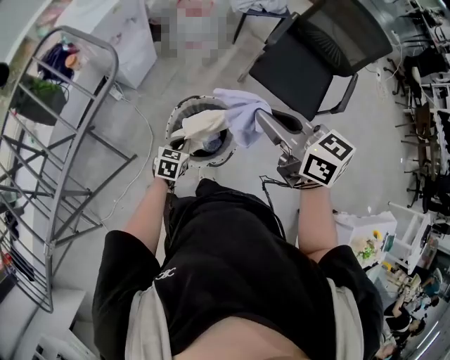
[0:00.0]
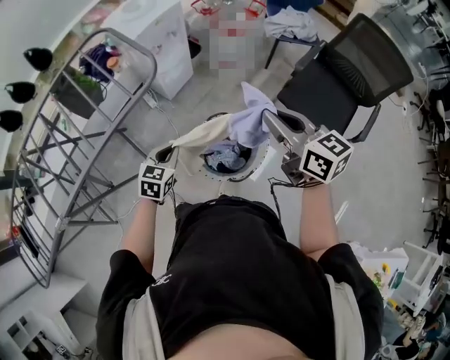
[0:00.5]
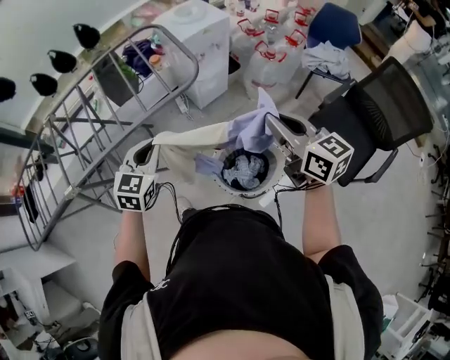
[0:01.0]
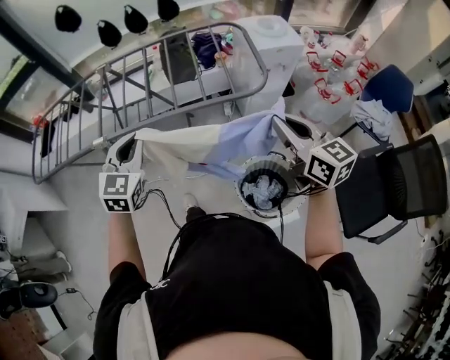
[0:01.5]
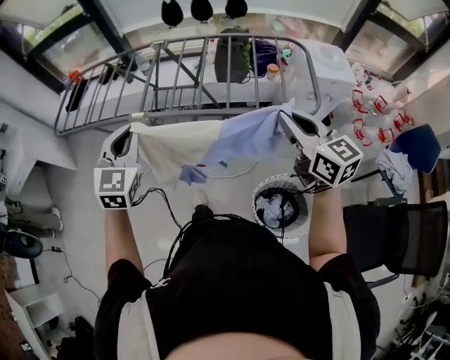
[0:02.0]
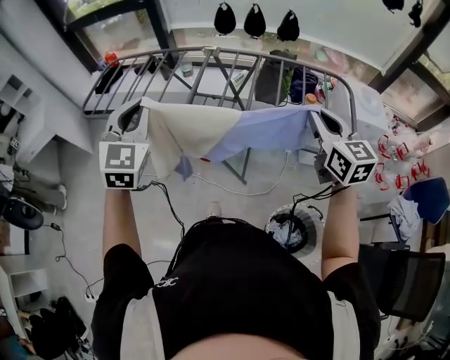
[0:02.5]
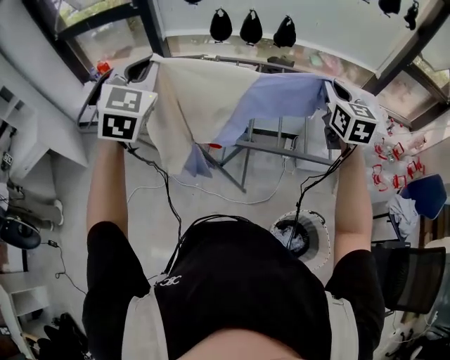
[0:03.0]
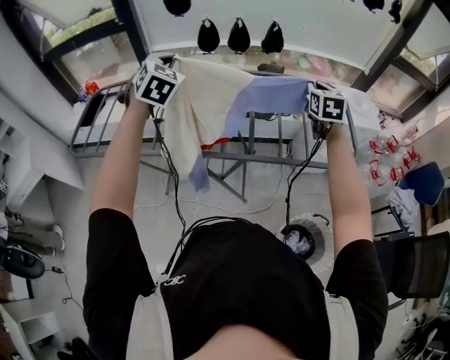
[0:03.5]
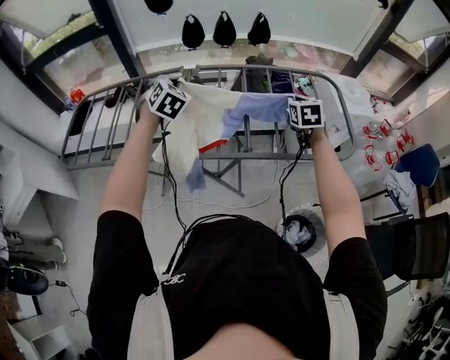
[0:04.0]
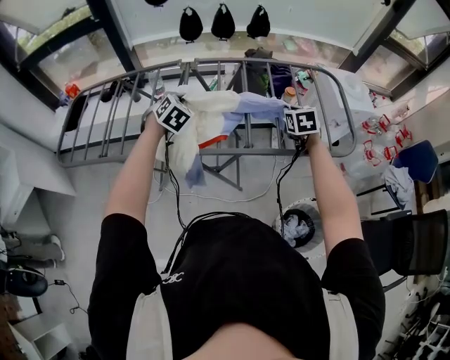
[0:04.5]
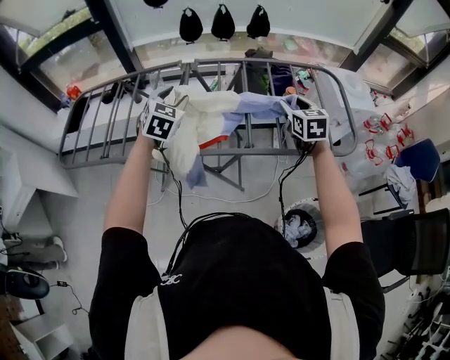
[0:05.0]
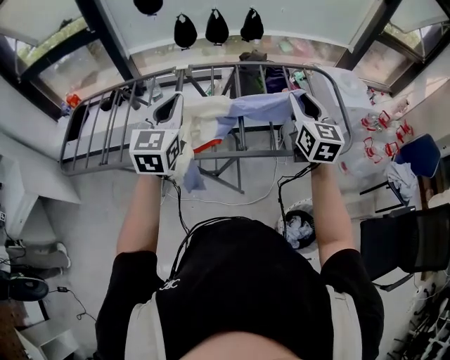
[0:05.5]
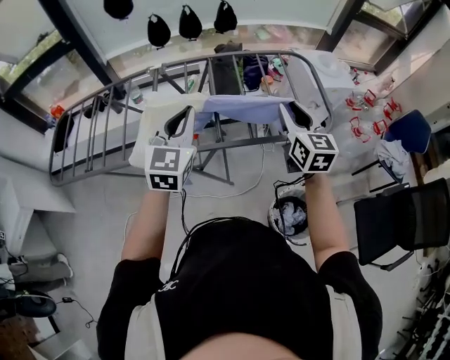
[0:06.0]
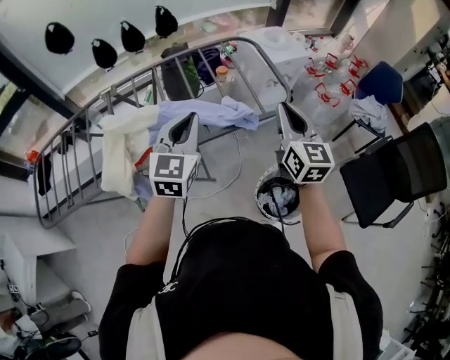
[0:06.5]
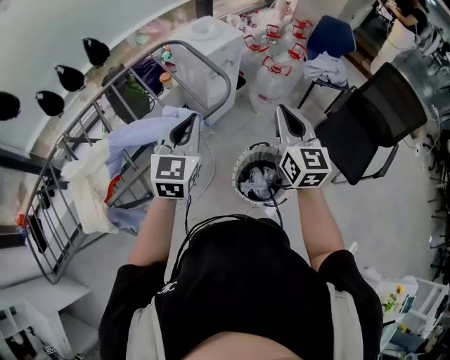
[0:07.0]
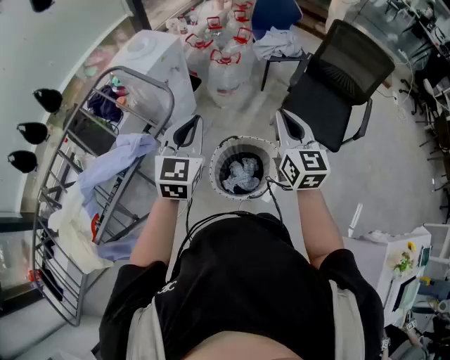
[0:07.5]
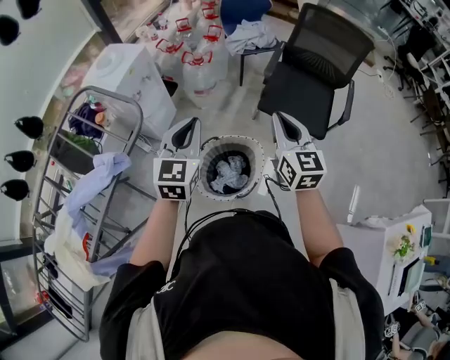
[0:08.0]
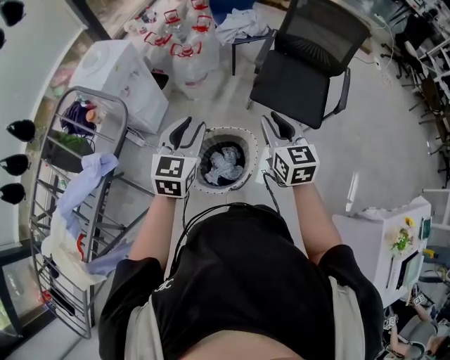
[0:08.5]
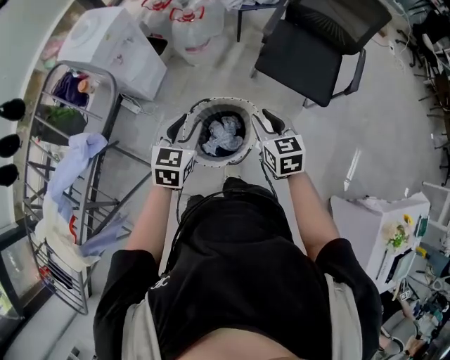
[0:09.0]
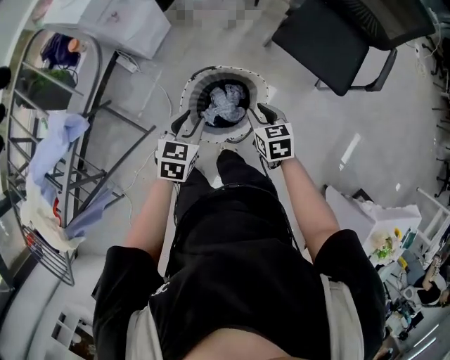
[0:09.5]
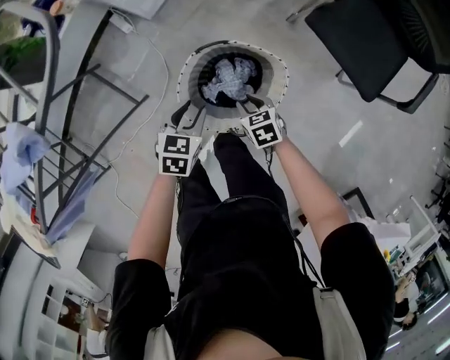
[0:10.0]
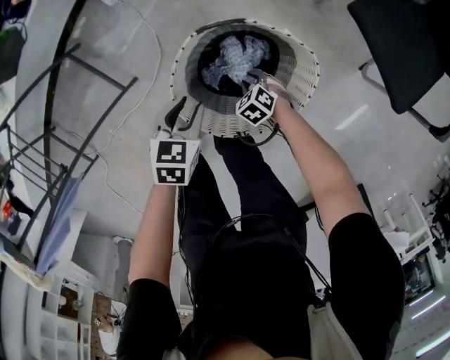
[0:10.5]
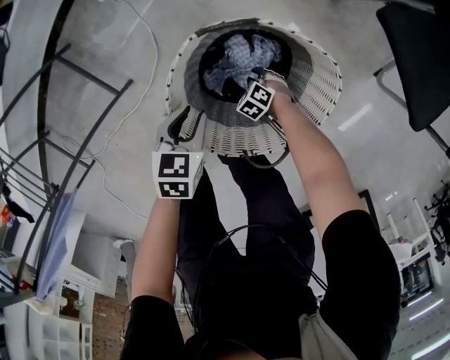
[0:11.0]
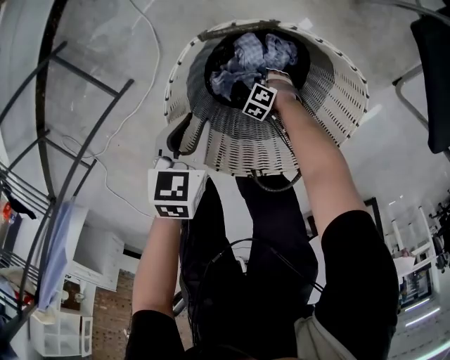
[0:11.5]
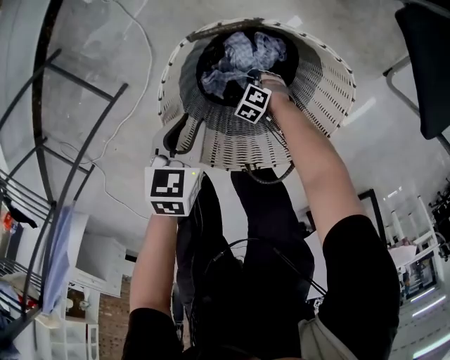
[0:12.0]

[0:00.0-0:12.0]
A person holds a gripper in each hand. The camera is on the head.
0:00.0 to 0:02.0: The left gripper shifts by roughly 70 cm, and swivels some 80 degrees, while the right gripper ends up roughly 35 cm from where it was, and swivels roughly 50 degrees.
0:02.0 to 0:04.0: The two grippers go roughly 30 cm forward. The left gripper turns by roughly 20 degrees, while the right gripper changes its angle by some 40 degrees.
0:04.0 to 0:06.0: The right gripper heads backward and upward, covering about 15 cm, rotates some 30 degrees, and opens its fingers. Meanwhile the left gripper heads backward and to the right, covering roughly 25 cm, moves approximately 10 cm downward and comes back, turns by roughly 40 degrees, and opens, then closes once more.
0:06.0 to 0:08.0: Both grippers are carried approximately 60 cm. The right gripper turns by some 50 degrees, and closes up. The left gripper rotates about 60 degrees.
0:08.0 to 0:10.0: The grippers both shift downward by approximately 50 cm. The right gripper tilts its fingers approximately 50 degrees downward, and opens its fingers; the left gripper tilts its fingers roughly 40 degrees downward, and opens its fingers.
0:10.0 to 0:12.0: The left gripper is displaced downward by approximately 25 cm. The right gripper travels downward by approximately 40 cm, and rotates around the line of its fingers by approximately 40 degrees, counterclockwise from behind.

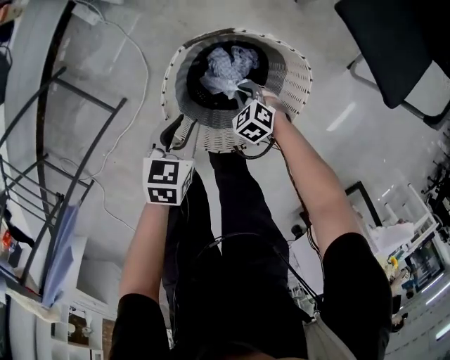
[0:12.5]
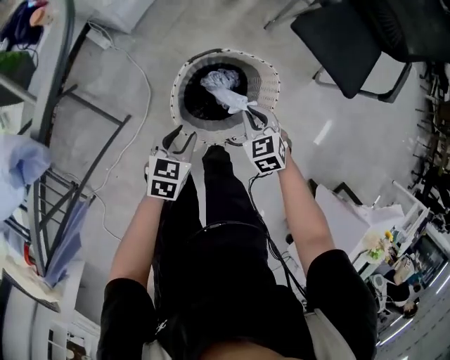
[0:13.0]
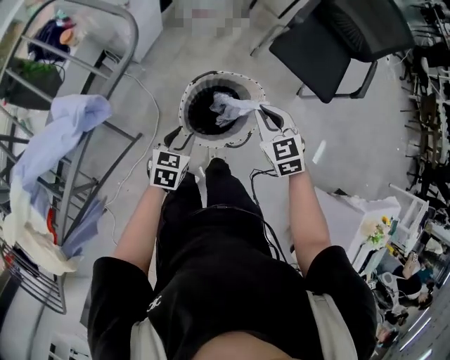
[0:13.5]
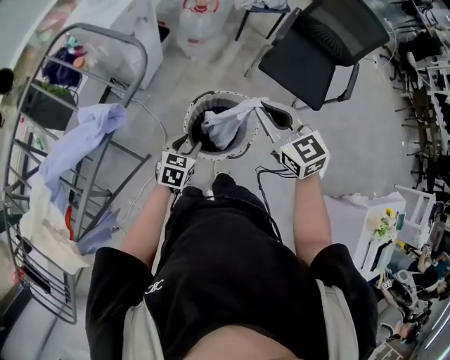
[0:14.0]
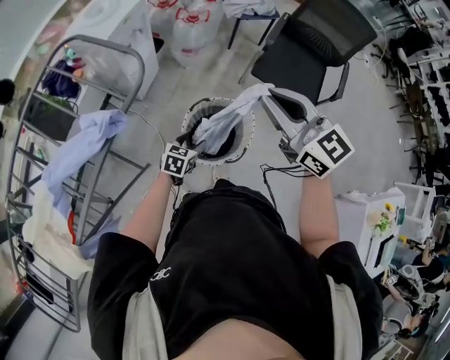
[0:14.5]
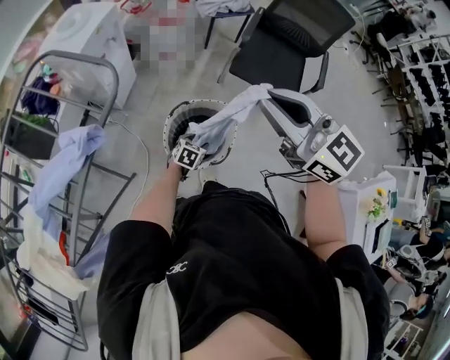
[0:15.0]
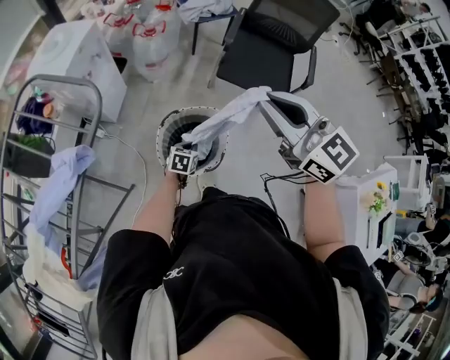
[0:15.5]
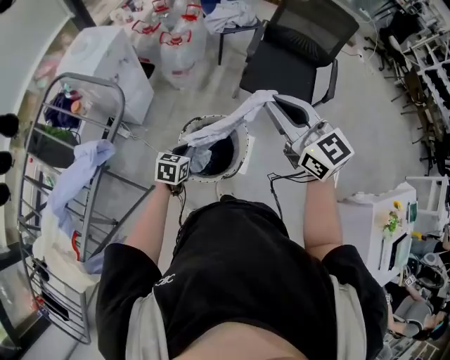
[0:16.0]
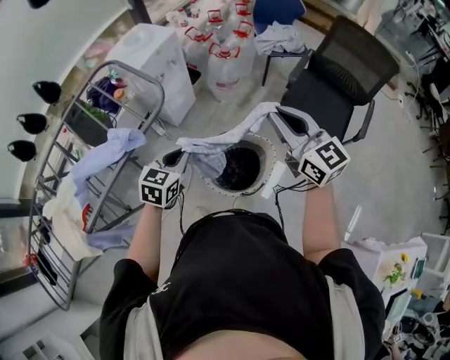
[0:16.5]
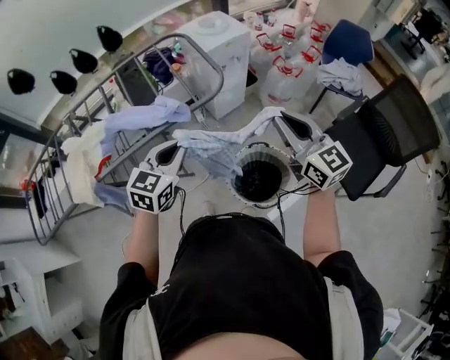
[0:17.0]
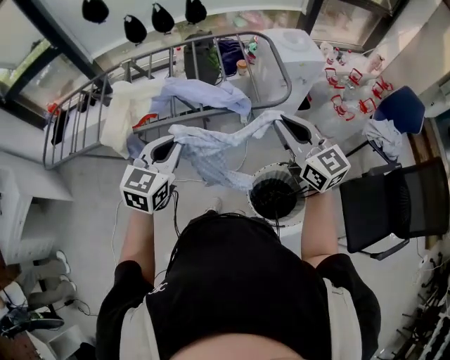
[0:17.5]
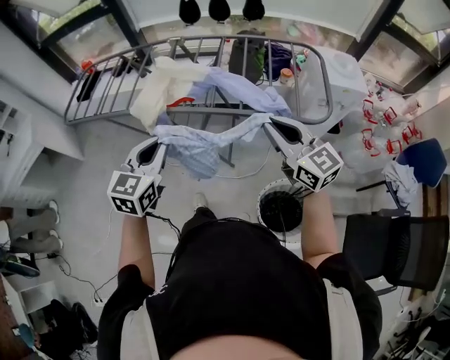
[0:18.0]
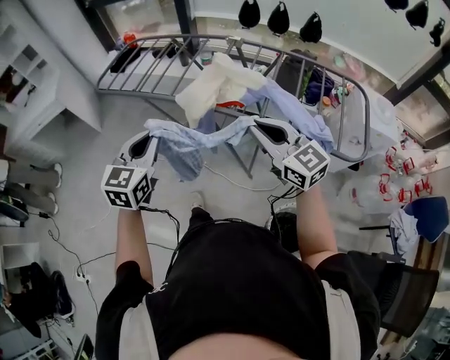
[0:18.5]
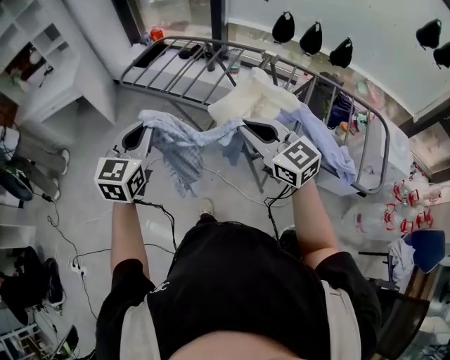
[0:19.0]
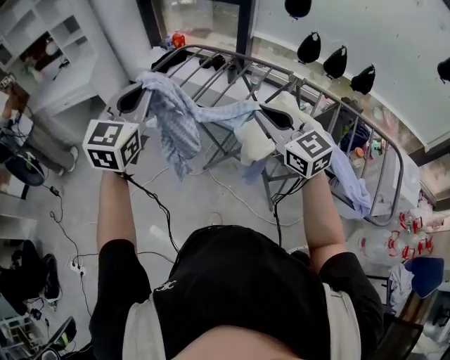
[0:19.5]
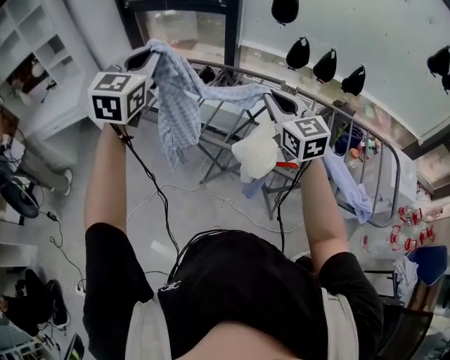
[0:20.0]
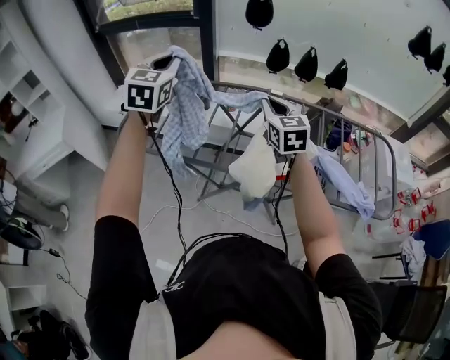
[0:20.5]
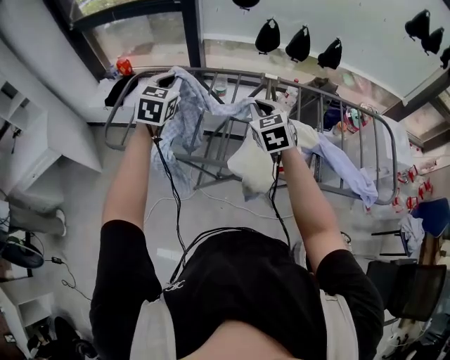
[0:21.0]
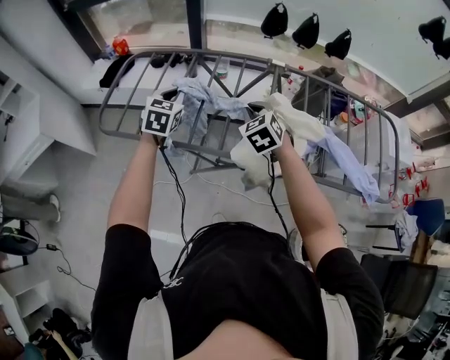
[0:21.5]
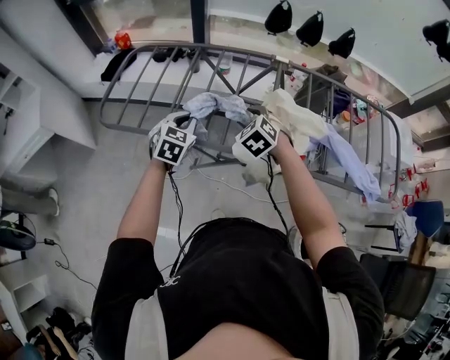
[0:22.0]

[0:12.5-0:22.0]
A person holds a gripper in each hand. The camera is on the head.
0:12.5 to 0:14.5: The right gripper moves upward, about 80 cm, and points its fingers approximately 60 degrees further upward. Meanwhile the left gripper shifts about 25 cm upward, rotates about 30 degrees, and opens.
0:14.5 to 0:16.5: The right gripper shifts about 5 cm to the right; the left gripper heads upward, covering about 20 cm, turns by approximately 20 degrees, and closes.
0:16.5 to 0:18.0: The left gripper ends up some 40 cm from where it was, and changes its angle by roughly 70 degrees; the right gripper shifts by about 40 cm, and changes its angle by about 60 degrees.
0:18.0 to 0:20.0: The two grippers travel together, some 50 cm. The left gripper changes its angle by roughly 30 degrees.
0:20.0 to 0:22.0: The two grippers go roughly 30 cm downward. The left gripper angles its fingers downward, by about 30 degrees, while the right gripper tips its fingers downward by about 40 degrees, and opens.

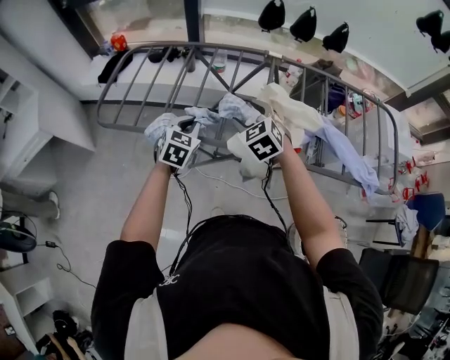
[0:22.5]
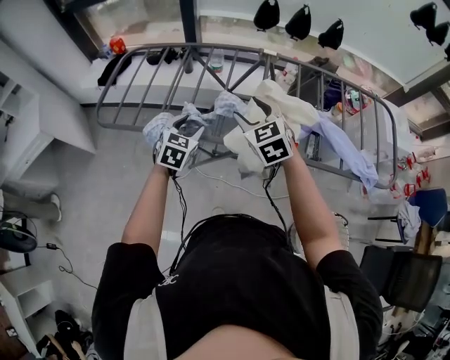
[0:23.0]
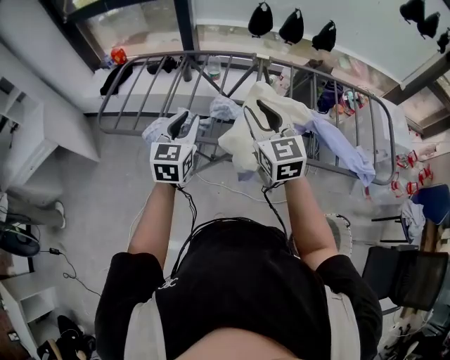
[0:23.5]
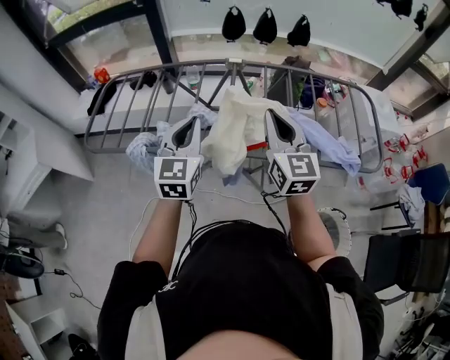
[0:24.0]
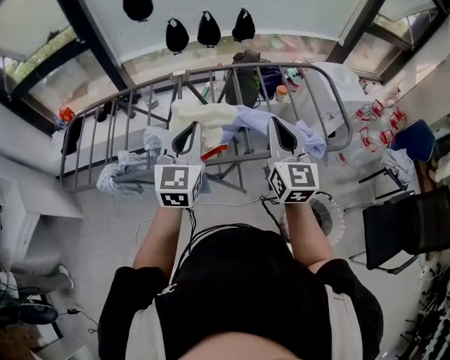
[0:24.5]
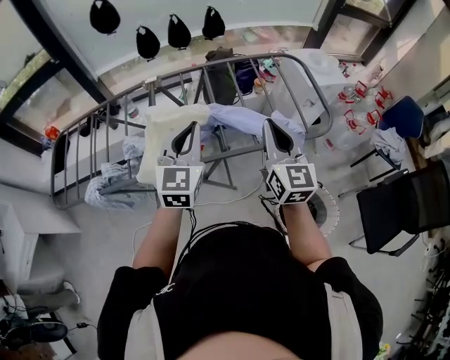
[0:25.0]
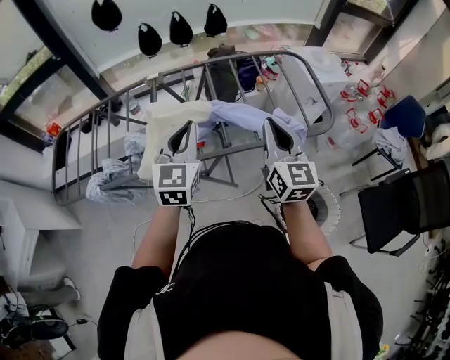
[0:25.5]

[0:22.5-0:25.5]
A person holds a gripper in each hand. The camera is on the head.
0:22.5 to 0:24.0: The right gripper travels upward, to the right and backward by roughly 25 cm, angles its fingers upward, by approximately 40 degrees, and closes. The left gripper shifts some 20 cm upward and to the right, swivels about 30 degrees, and opens and closes again.
0:24.0 to 0:25.5: Both grippers travel together to the right, about 25 cm.

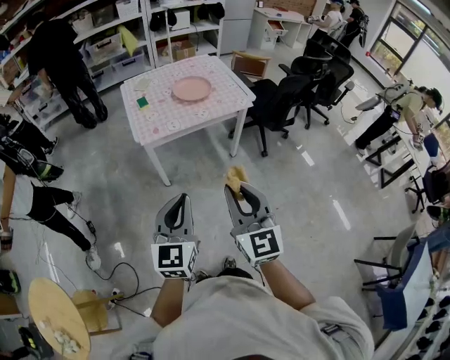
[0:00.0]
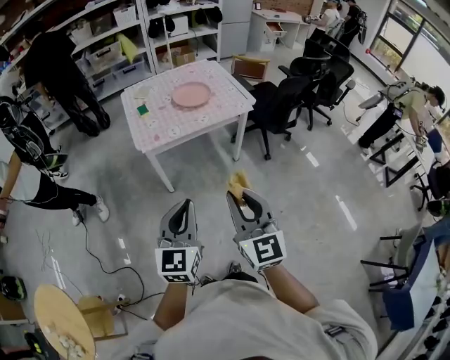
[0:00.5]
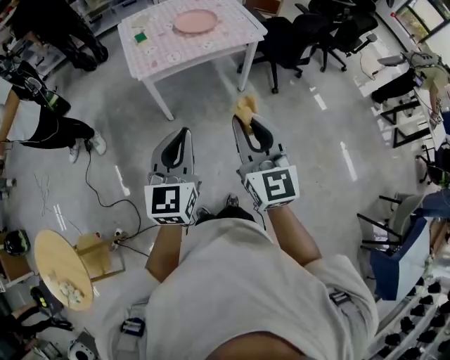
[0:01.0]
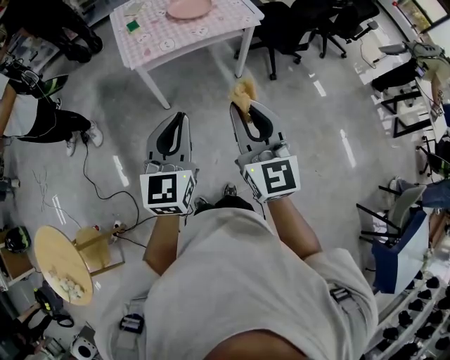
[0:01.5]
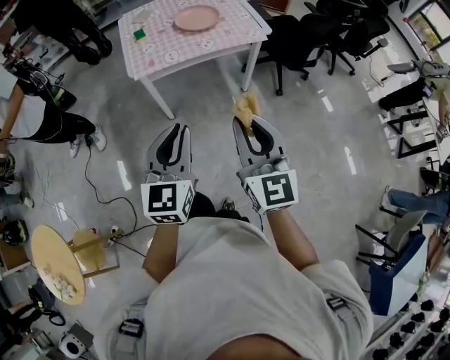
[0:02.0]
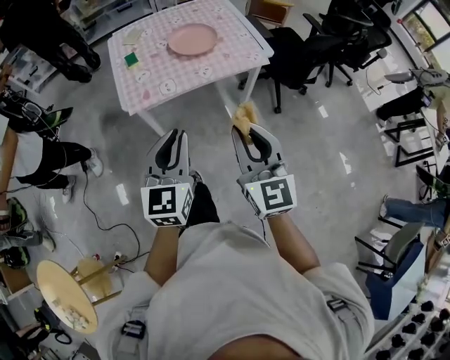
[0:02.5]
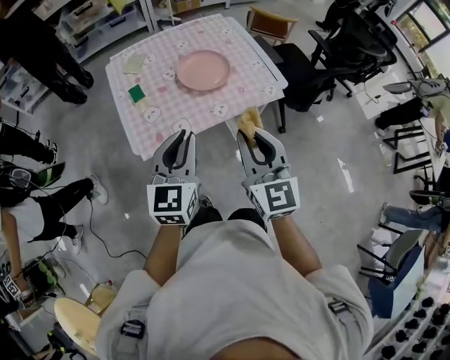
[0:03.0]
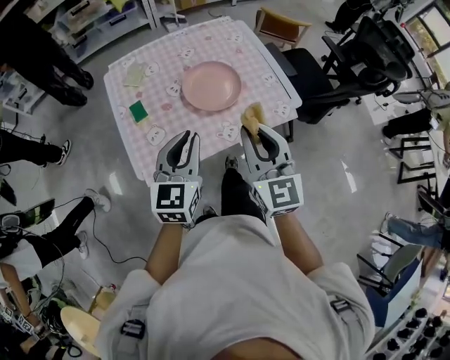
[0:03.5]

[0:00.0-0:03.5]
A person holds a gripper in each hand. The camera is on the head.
0:00.0 to 0:02.0: The grippers both shift to the right by roughly 5 cm.
0:02.0 to 0:03.5: The two grippers travel together, forward, approximately 50 cm.
